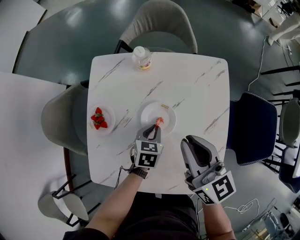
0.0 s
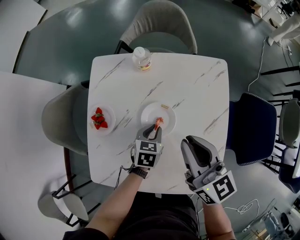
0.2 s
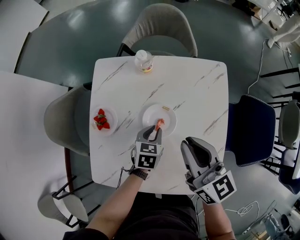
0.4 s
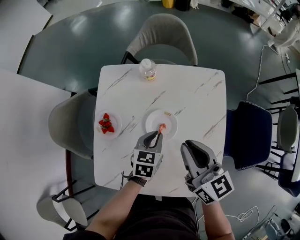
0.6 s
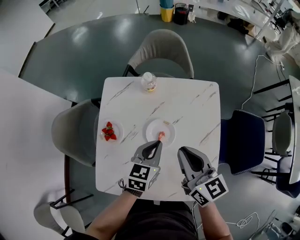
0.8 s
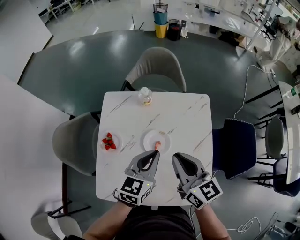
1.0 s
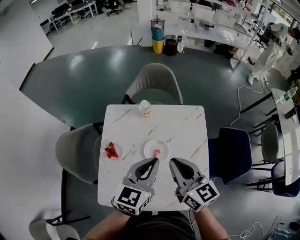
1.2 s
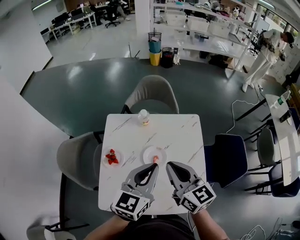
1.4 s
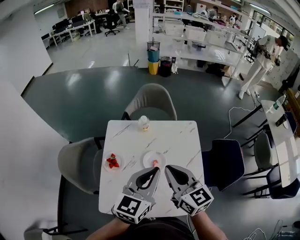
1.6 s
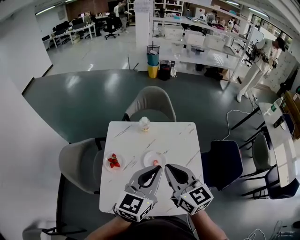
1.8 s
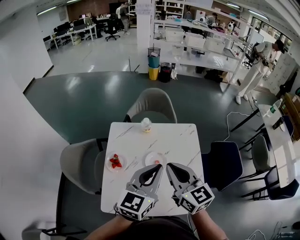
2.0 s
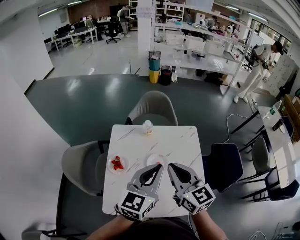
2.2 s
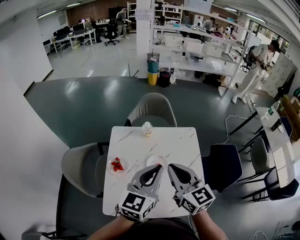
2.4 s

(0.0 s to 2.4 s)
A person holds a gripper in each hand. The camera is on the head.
0.0 s - 1.2 s: The right gripper is displaced upward by roughly 10 cm; the left gripper is displaced upward by some 30 cm, and points its fingers approximately 40 degrees further upward.
1.2 s - 2.4 s: Both grippers travel together upward and backward, some 10 cm.

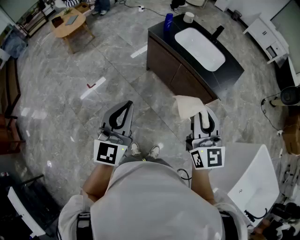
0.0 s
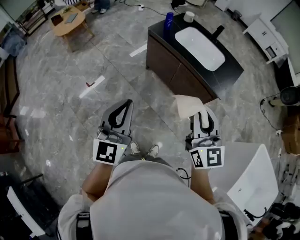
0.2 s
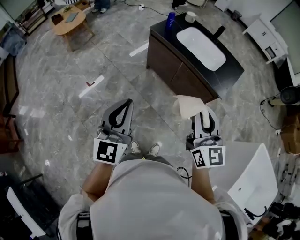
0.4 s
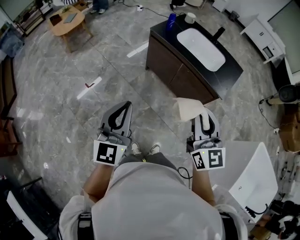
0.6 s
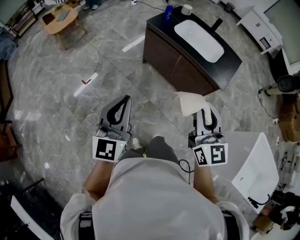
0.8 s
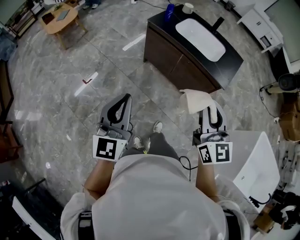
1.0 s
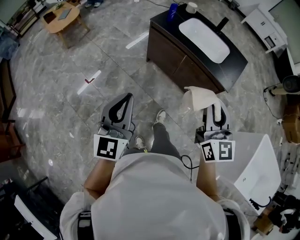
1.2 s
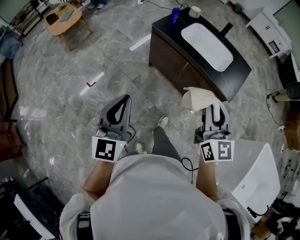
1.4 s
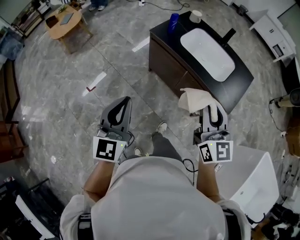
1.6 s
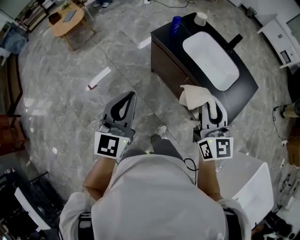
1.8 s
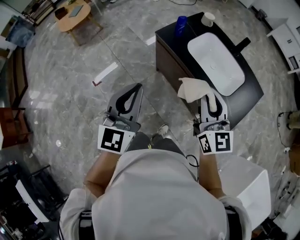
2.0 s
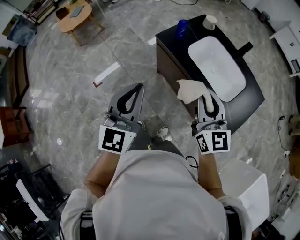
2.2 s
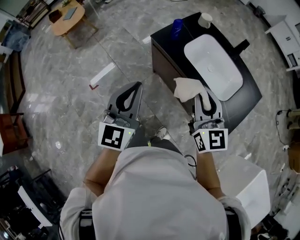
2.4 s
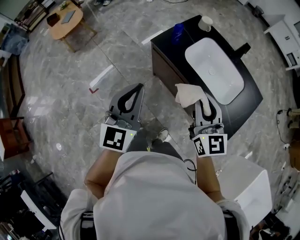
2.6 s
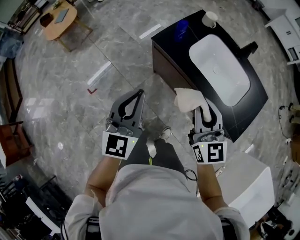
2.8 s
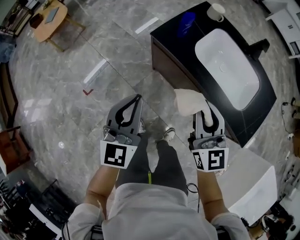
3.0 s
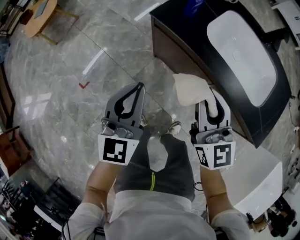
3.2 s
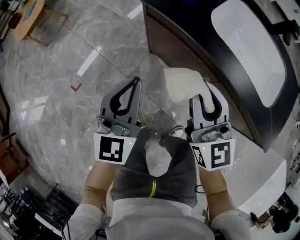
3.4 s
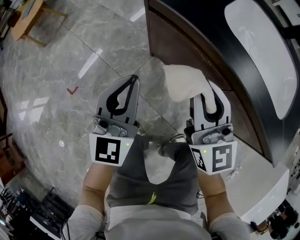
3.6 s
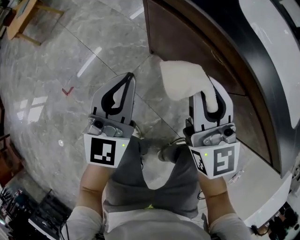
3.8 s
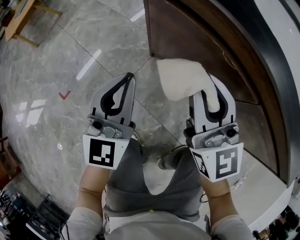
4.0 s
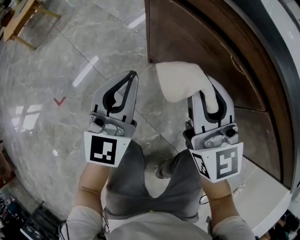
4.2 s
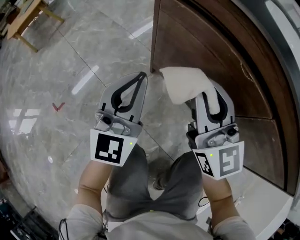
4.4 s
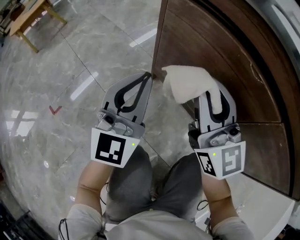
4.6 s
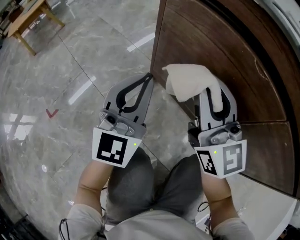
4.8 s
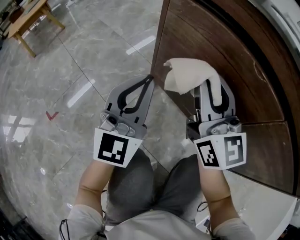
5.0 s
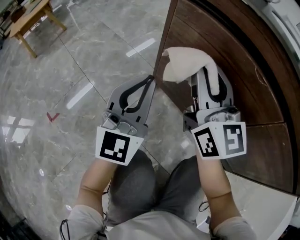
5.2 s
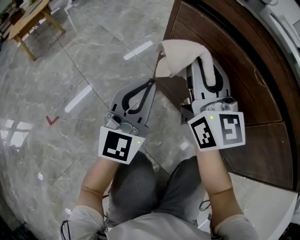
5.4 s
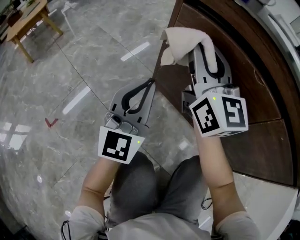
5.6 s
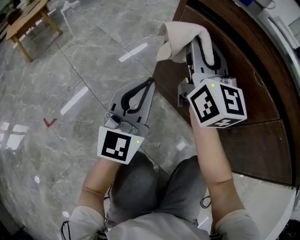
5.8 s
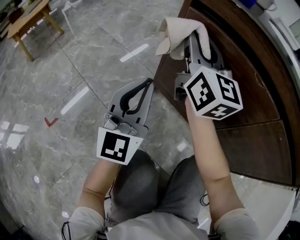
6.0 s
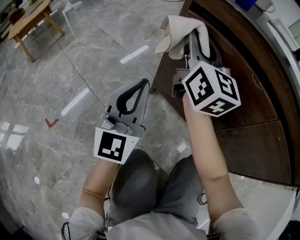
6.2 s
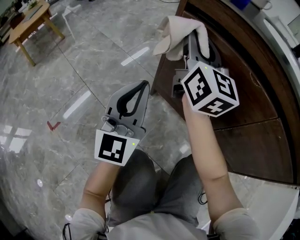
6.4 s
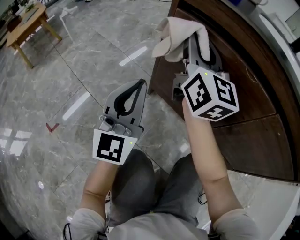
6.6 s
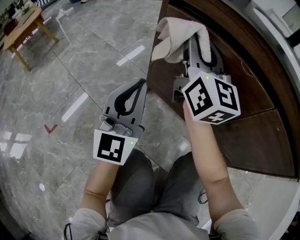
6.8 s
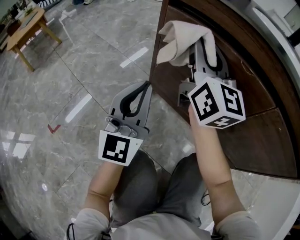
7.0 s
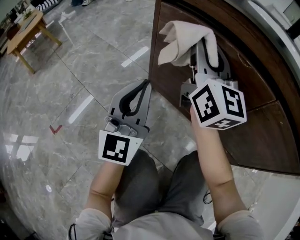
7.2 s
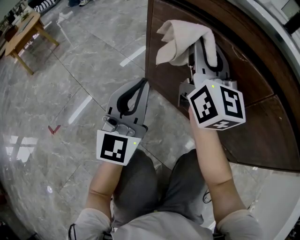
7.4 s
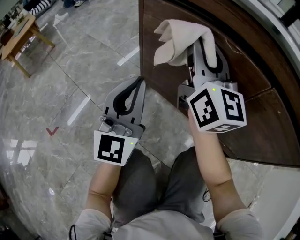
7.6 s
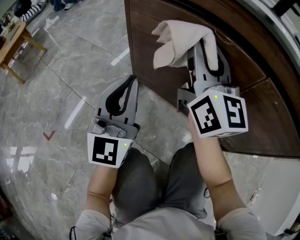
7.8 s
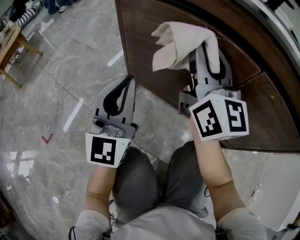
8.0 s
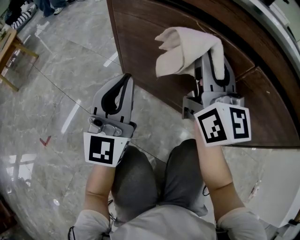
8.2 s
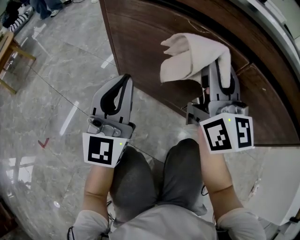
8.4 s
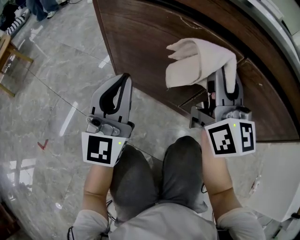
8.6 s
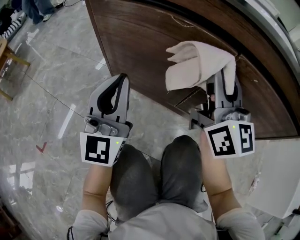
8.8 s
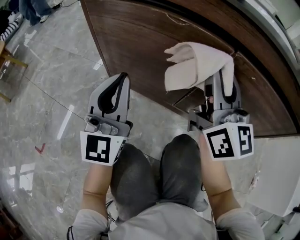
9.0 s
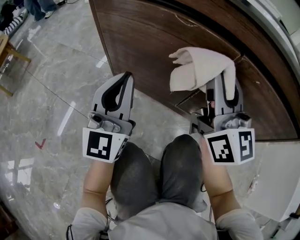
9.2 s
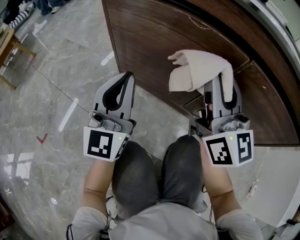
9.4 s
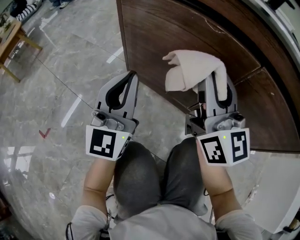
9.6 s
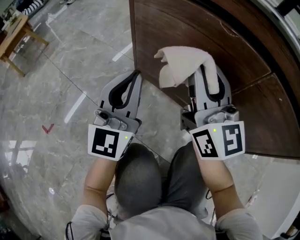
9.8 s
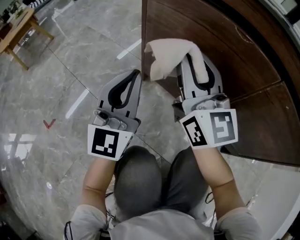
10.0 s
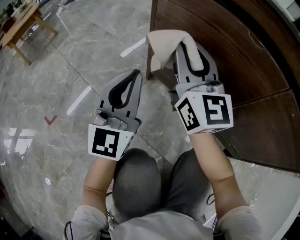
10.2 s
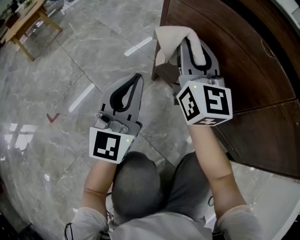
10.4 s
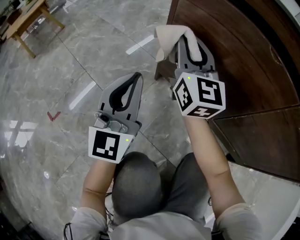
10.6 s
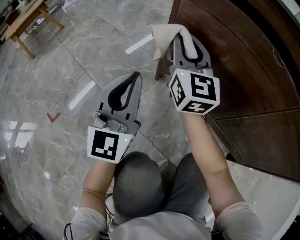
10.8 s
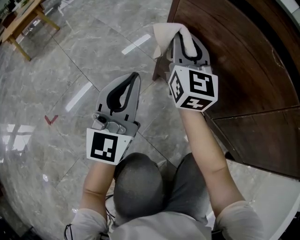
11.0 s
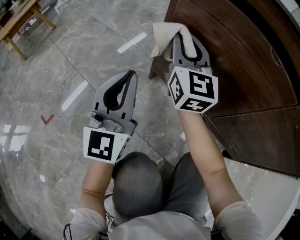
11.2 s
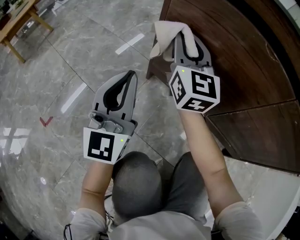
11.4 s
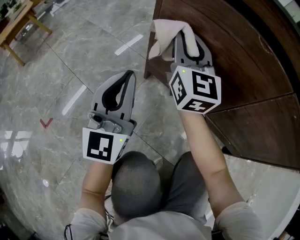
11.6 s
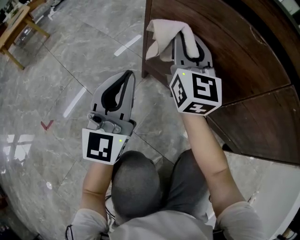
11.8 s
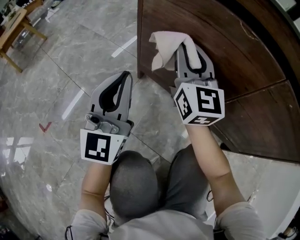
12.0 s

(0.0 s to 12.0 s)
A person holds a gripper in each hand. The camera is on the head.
0.0 s - 1.6 s: Both grippers move forward, approximately 20 cm.
1.6 s - 3.0 s: Both grippers travel together forward and downward, some 35 cm.
3.0 s - 4.4 s: Both grippers travel together downward, about 50 cm.
4.4 s - 6.0 s: The left gripper goes about 5 cm to the left; the right gripper is displaced forward and to the left by approximately 15 cm.
6.0 s - 7.6 s: The left gripper moves to the right, some 5 cm, while the right gripper is displaced to the right and backward by roughly 15 cm.
7.6 s - 9.0 s: The right gripper travels to the right and backward by about 20 cm, while the left gripper is displaced to the right by roughly 10 cm.
9.0 s - 10.4 s: The right gripper goes some 25 cm to the left and forward, while the left gripper shifts approximately 15 cm to the left and downward.
10.4 s - 12.0 s: The right gripper shifts some 5 cm to the right.

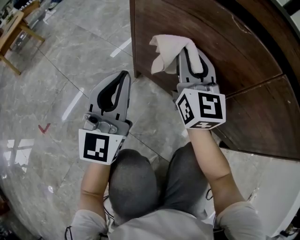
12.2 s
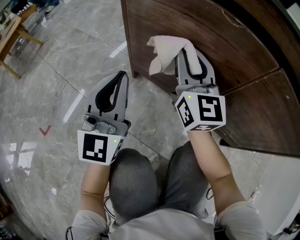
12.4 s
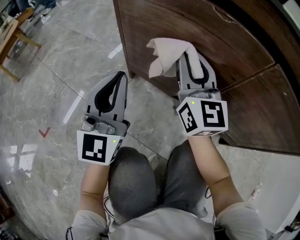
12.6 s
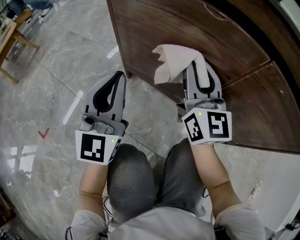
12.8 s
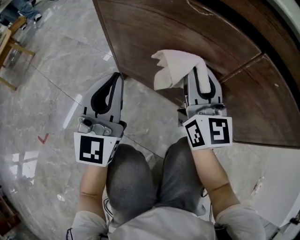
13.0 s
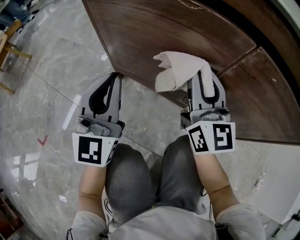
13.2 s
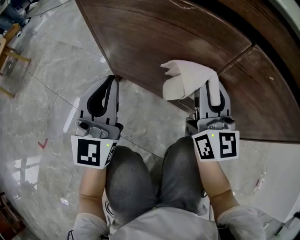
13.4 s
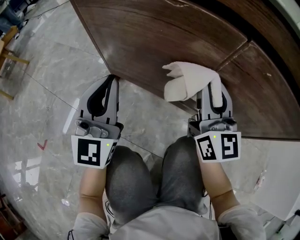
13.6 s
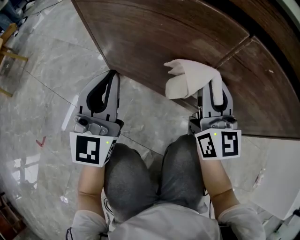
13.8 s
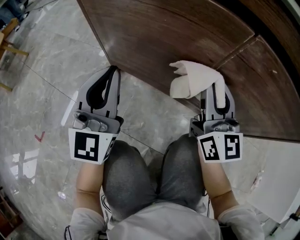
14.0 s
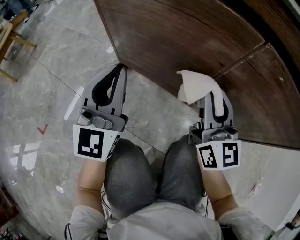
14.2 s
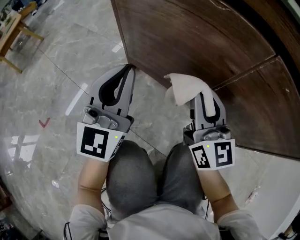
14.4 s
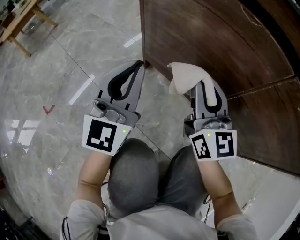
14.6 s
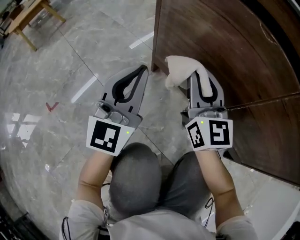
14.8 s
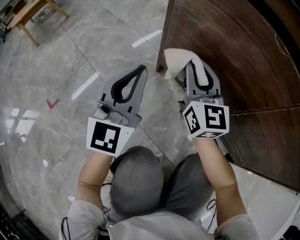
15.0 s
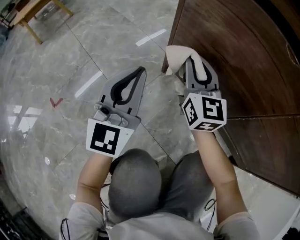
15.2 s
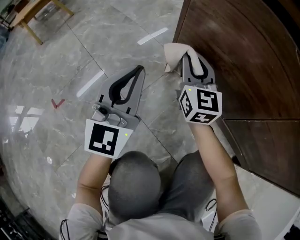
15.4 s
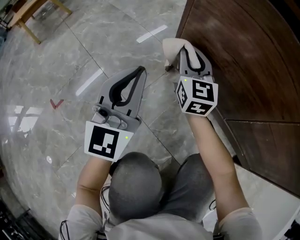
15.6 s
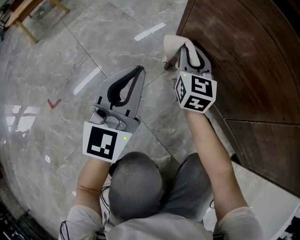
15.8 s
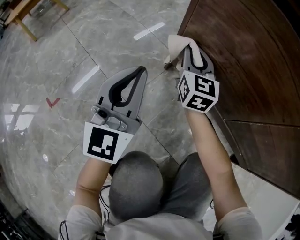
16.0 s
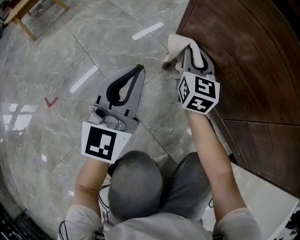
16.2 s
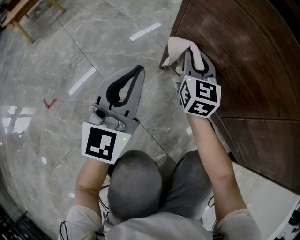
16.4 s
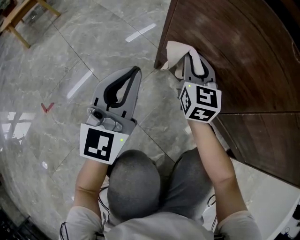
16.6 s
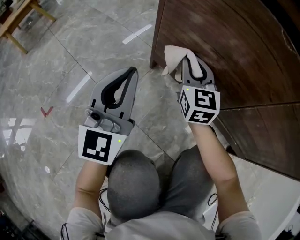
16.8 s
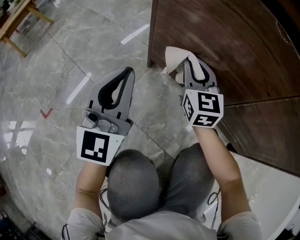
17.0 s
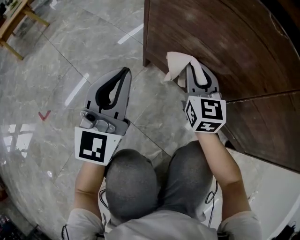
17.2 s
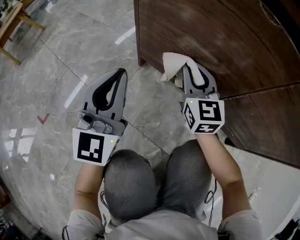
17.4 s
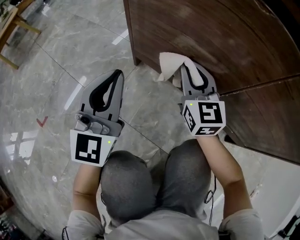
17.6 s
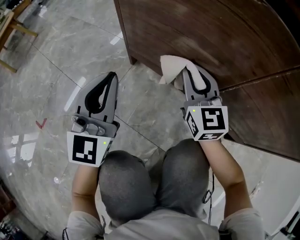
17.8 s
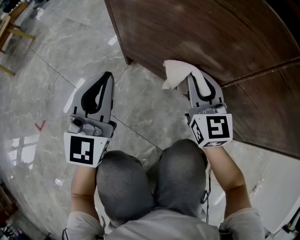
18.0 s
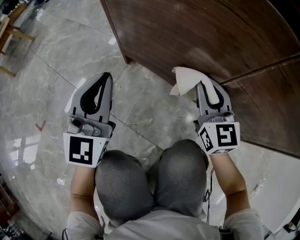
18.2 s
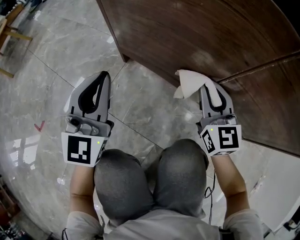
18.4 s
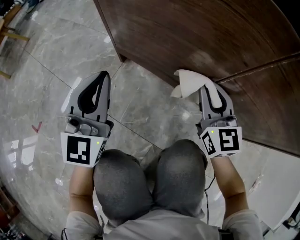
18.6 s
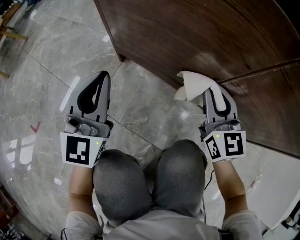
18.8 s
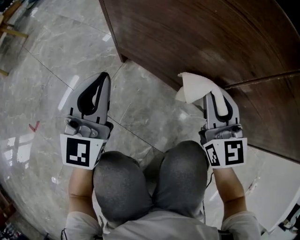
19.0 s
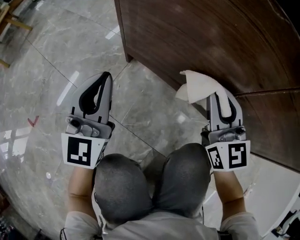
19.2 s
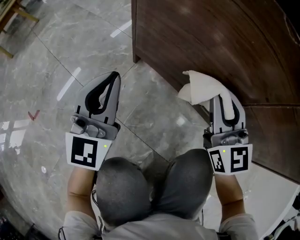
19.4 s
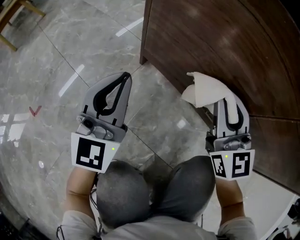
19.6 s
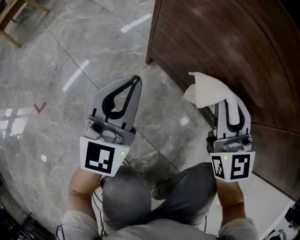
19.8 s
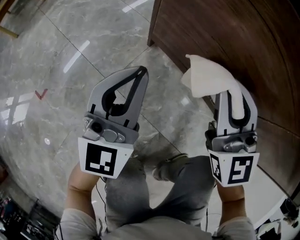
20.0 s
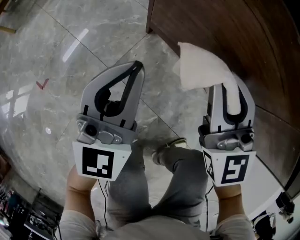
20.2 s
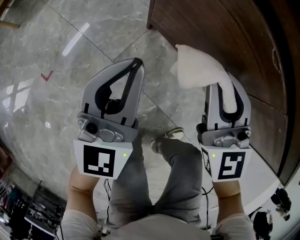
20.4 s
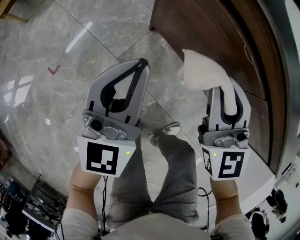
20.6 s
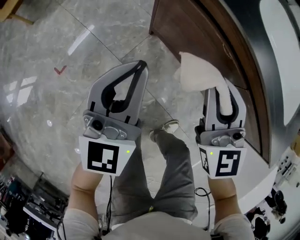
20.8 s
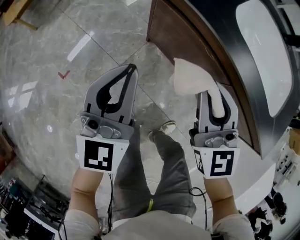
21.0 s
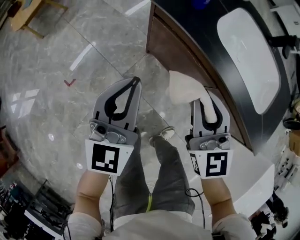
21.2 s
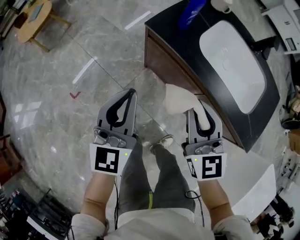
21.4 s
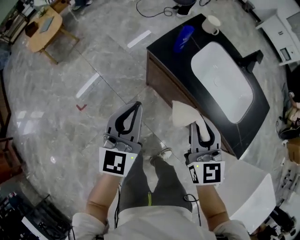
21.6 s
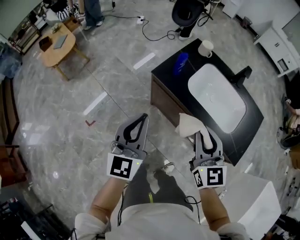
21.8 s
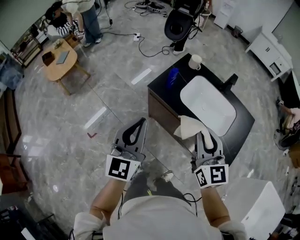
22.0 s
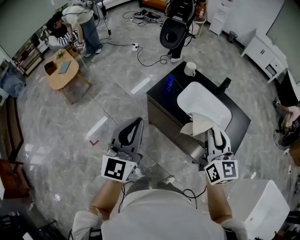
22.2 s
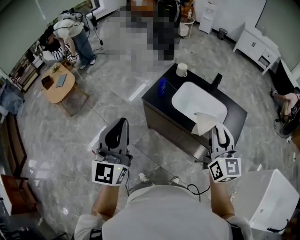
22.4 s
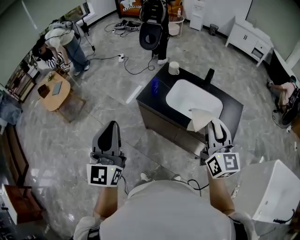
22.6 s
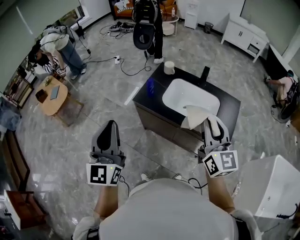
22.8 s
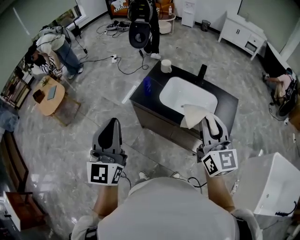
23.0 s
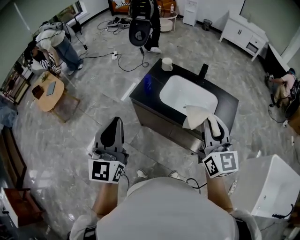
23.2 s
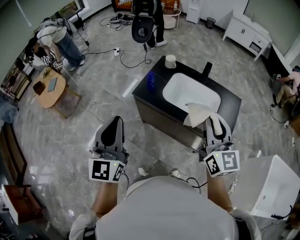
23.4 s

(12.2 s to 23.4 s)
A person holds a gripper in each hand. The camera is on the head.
12.2 s - 13.8 s: The right gripper goes some 20 cm to the right and backward. Meanwhile the left gripper is displaced to the right by some 10 cm.
13.8 s - 15.4 s: The right gripper goes about 30 cm to the left and forward, and turns by some 20 degrees. The left gripper travels to the left by some 15 cm.
15.4 s - 17.0 s: The right gripper goes roughly 10 cm to the right.
17.0 s - 18.6 s: The left gripper shifts approximately 10 cm to the right; the right gripper is displaced to the right and backward by roughly 20 cm.
18.6 s - 20.2 s: The right gripper shifts roughly 20 cm upward and to the left. Meanwhile the left gripper goes some 10 cm upward.
20.2 s - 21.8 s: Both grippers move upward, about 60 cm.
21.8 s - 23.4 s: The right gripper heads upward and to the right, covering some 25 cm; the left gripper moves upward, about 20 cm.
